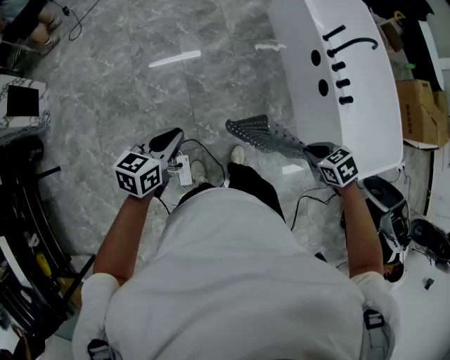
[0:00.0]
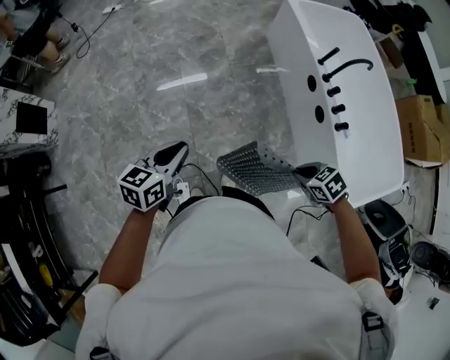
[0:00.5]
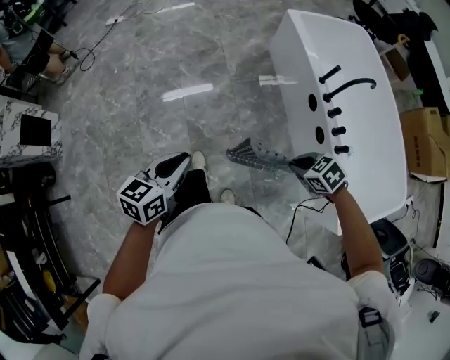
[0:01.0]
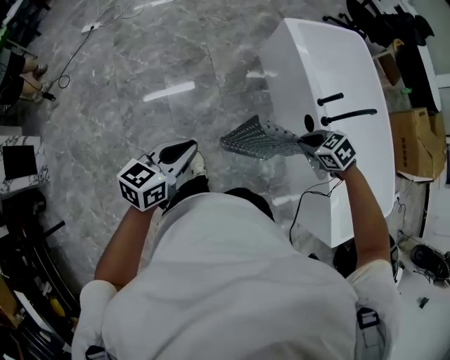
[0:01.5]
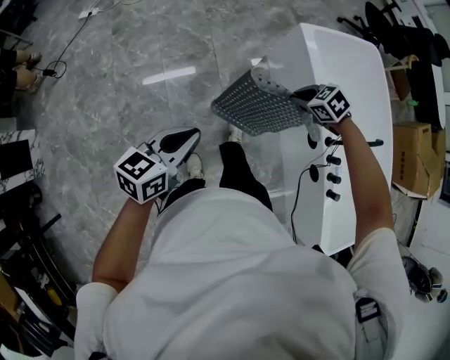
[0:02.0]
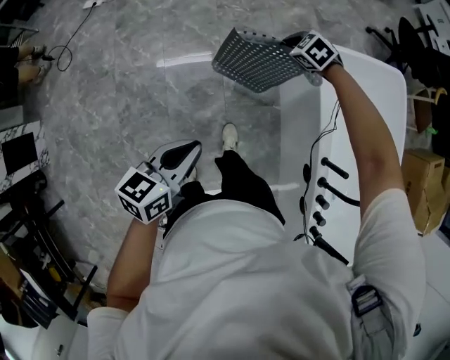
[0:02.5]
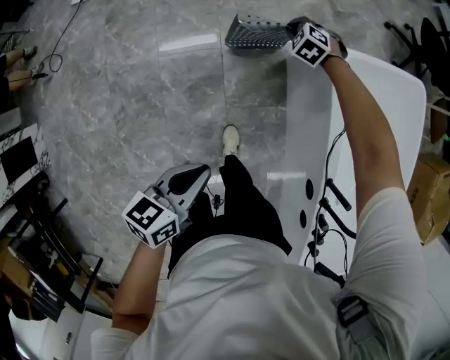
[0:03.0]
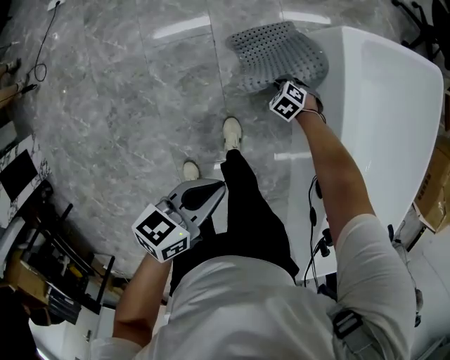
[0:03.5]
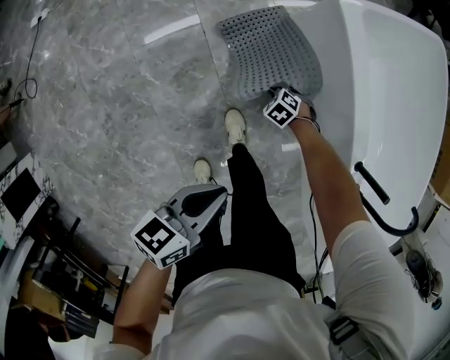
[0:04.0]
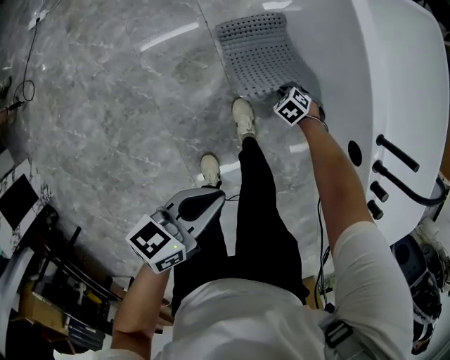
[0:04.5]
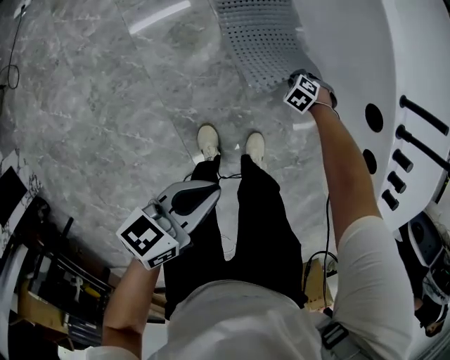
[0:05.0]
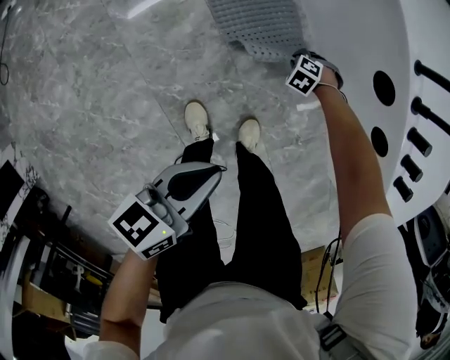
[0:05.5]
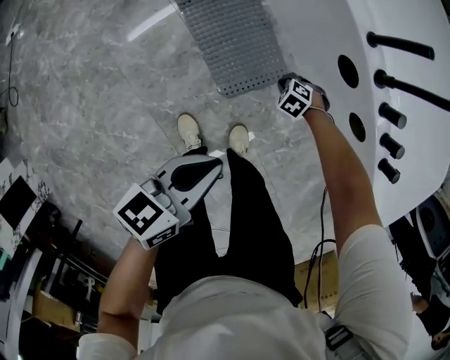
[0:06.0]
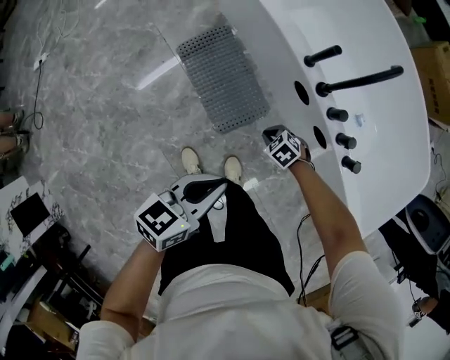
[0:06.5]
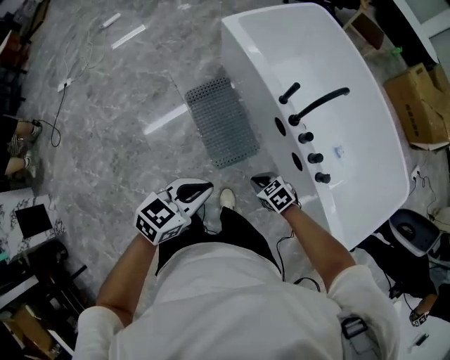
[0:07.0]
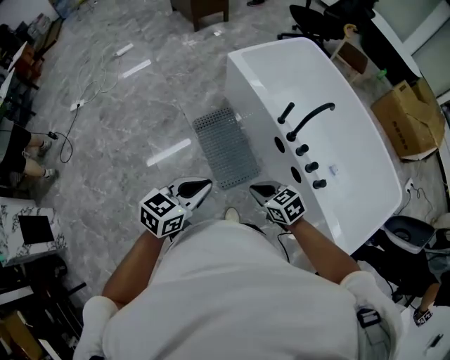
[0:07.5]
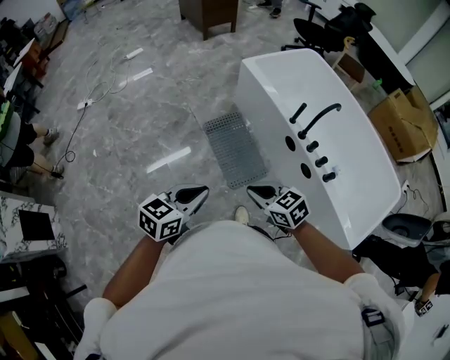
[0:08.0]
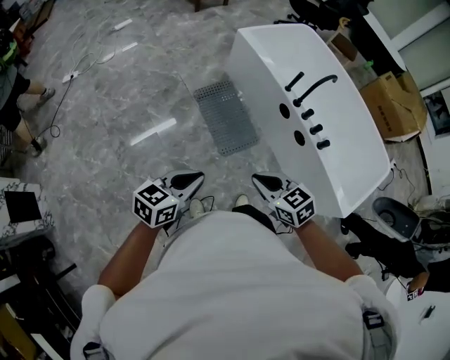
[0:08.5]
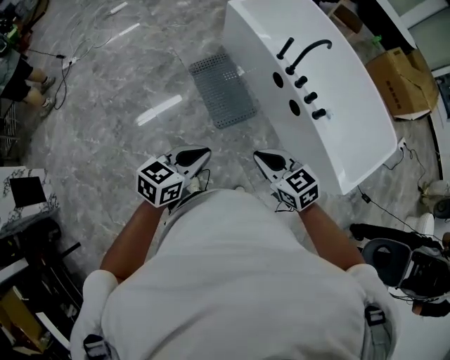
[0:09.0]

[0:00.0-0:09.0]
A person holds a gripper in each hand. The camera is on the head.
0:00.0 to 0:02.0: The two grippers travel together, forward, approximately 60 cm.
0:02.0 to 0:04.5: The left gripper is displaced downward by some 25 cm, and changes its angle by some 20 degrees, while the right gripper is displaced downward by roughly 50 cm.
0:04.5 to 0:07.0: The left gripper changes place by about 35 cm, and changes its angle by about 40 degrees. The right gripper moves roughly 60 cm, and swivels roughly 40 degrees.
0:07.0 to 0:09.0: The right gripper is displaced upward by some 25 cm, and swivels some 30 degrees, while the left gripper moves about 25 cm.

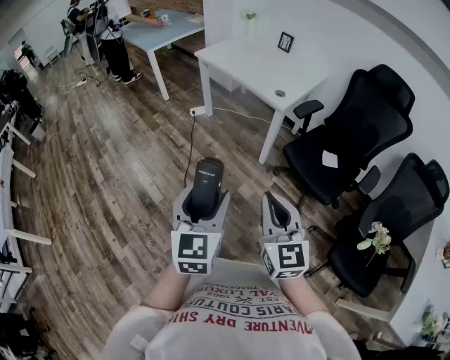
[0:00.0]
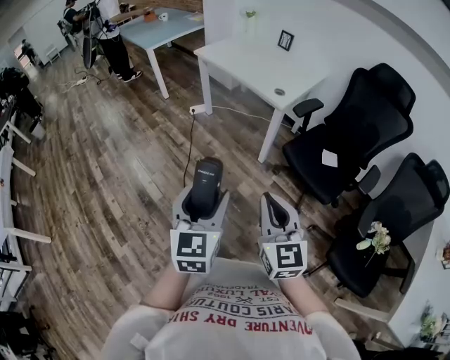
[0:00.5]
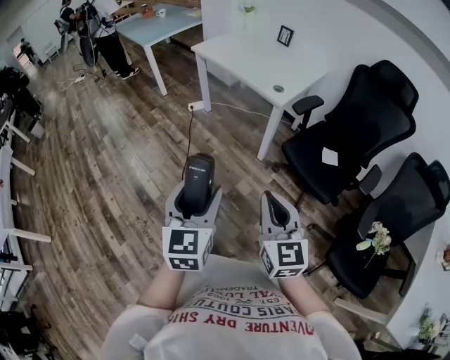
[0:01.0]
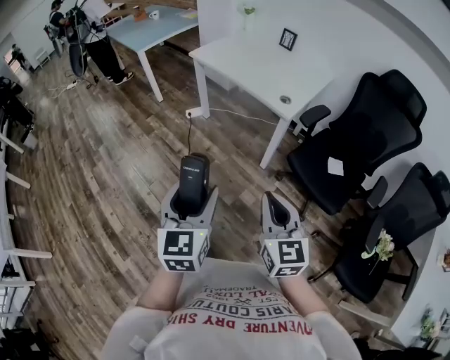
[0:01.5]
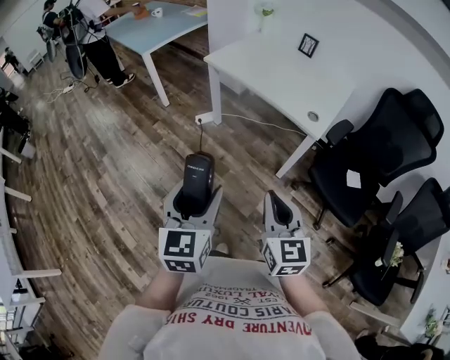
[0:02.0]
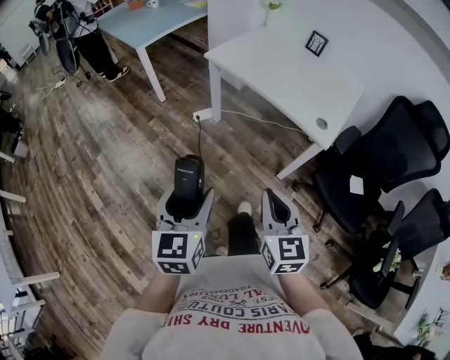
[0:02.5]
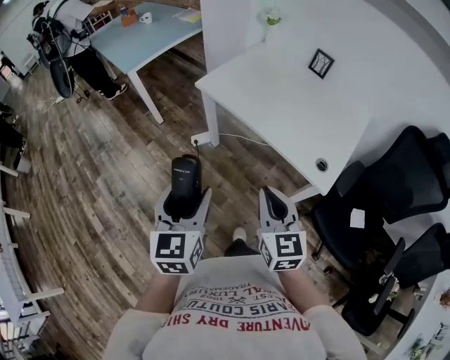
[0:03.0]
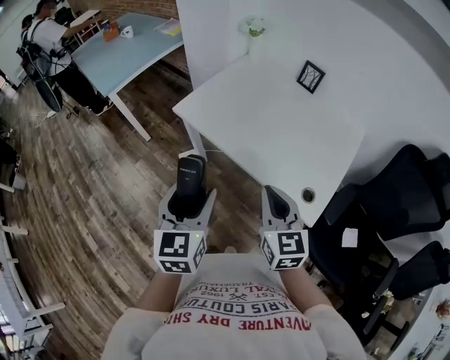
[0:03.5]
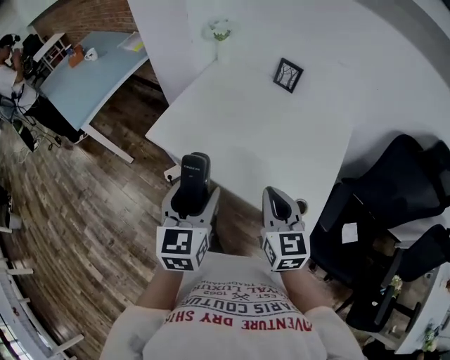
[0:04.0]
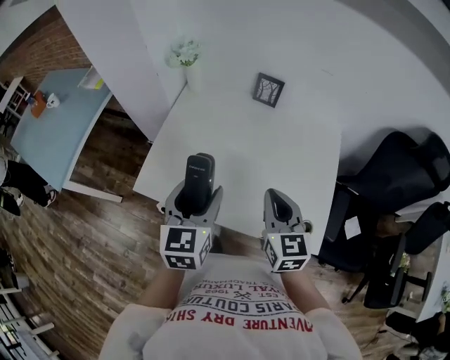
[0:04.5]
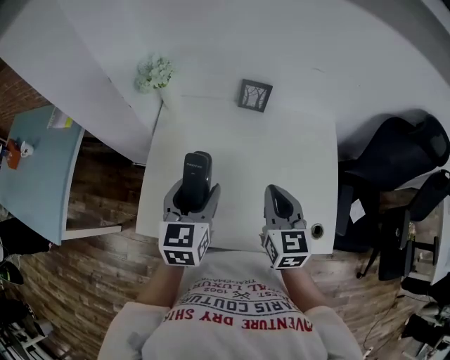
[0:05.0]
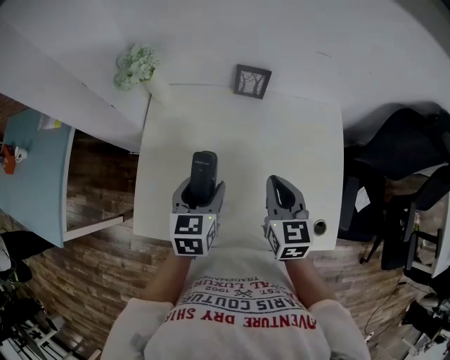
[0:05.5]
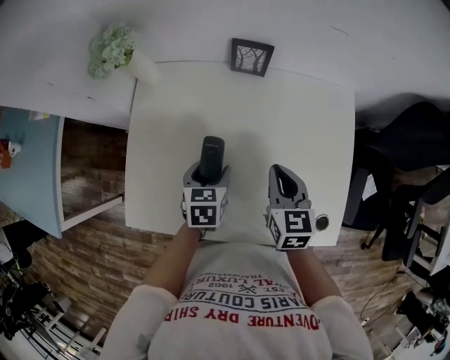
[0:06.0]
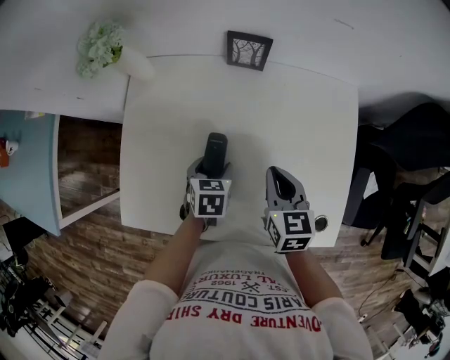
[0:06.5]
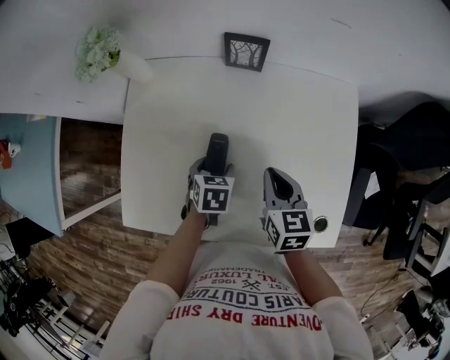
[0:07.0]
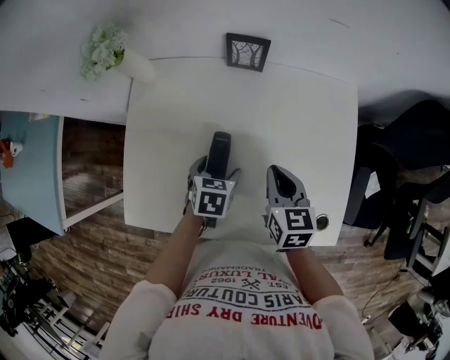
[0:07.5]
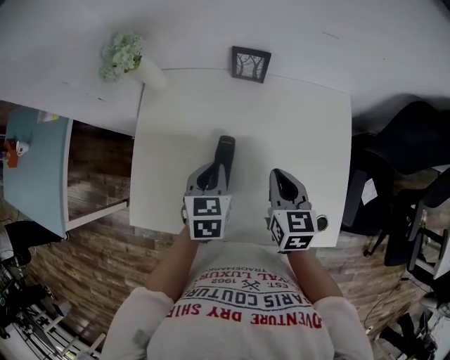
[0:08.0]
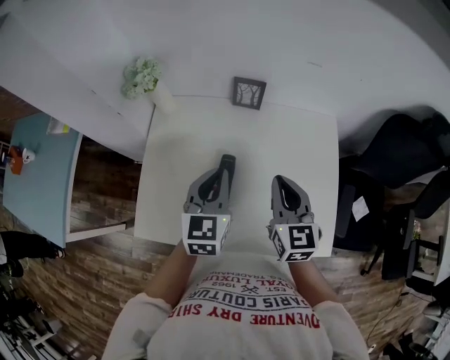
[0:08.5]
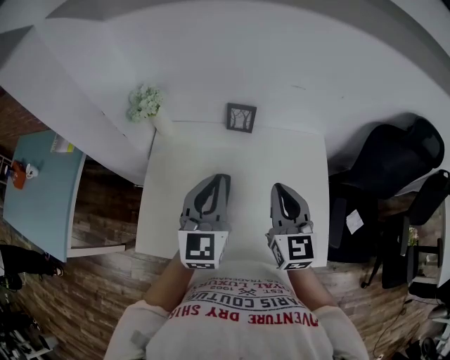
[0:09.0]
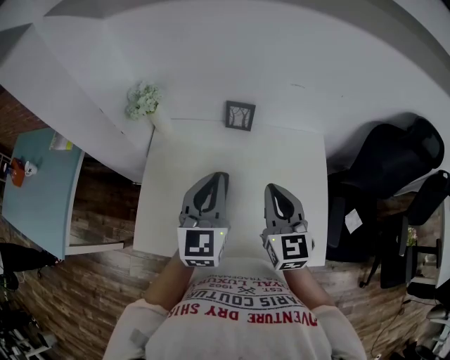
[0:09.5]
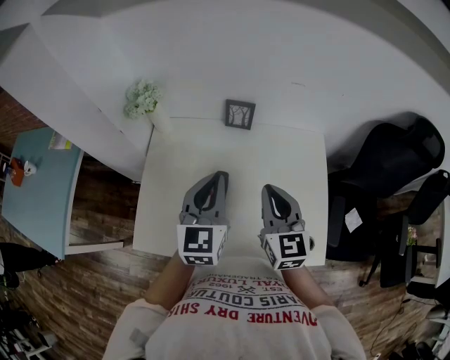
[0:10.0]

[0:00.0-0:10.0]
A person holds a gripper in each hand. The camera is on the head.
0:00.0 to 0:02.0: The grippers both shift forward and to the left by roughly 30 cm.
0:02.0 to 0:04.0: The pair of grippers is taken forward, approximately 50 cm.
0:04.0 to 0:06.0: The left gripper changes place by some 40 cm, and tips its fingers downward by roughly 30 degrees, while the right gripper shifts by about 30 cm, and swivels approximately 30 degrees.
0:06.0 to 0:08.0: The left gripper heads upward, covering roughly 10 cm, and closes up.
0:08.0 to 0:10.0: Both grippers move upward, roughly 15 cm. The right gripper rotates some 20 degrees; the left gripper tilts its fingers about 30 degrees upward.

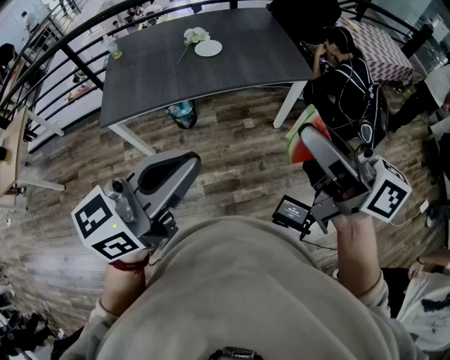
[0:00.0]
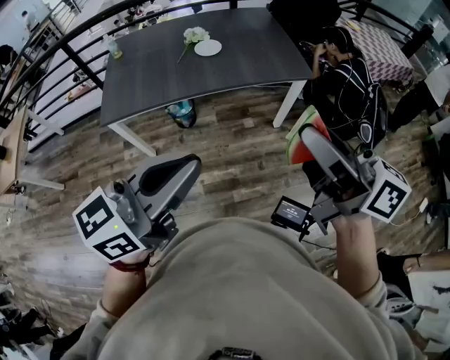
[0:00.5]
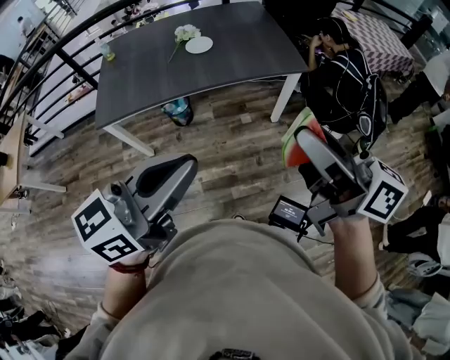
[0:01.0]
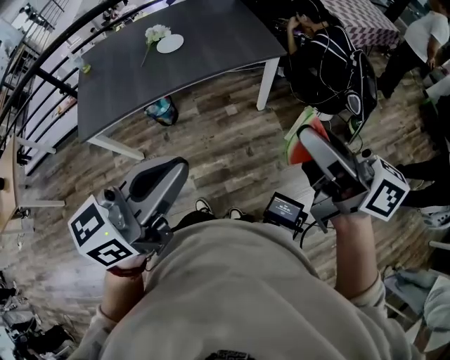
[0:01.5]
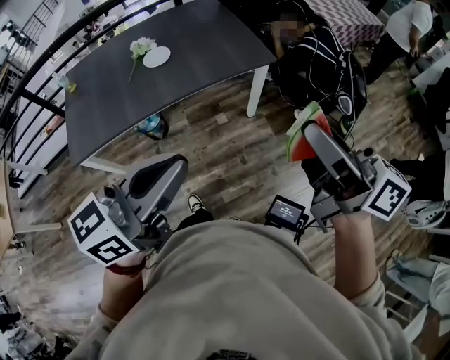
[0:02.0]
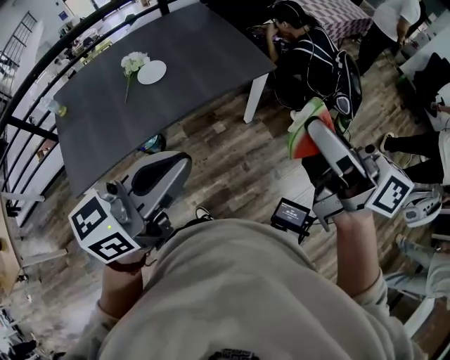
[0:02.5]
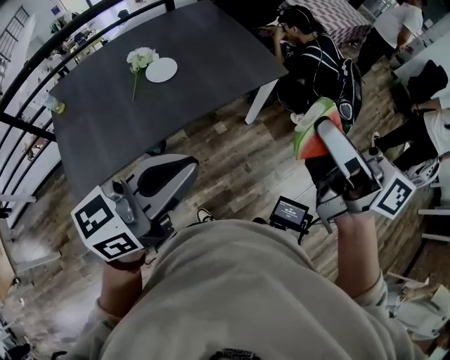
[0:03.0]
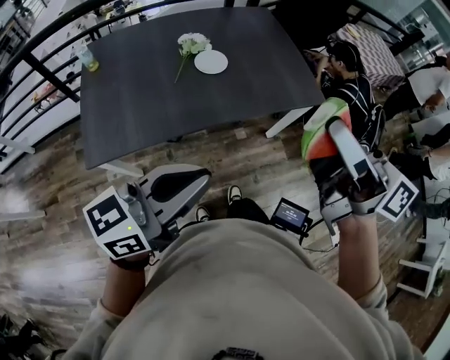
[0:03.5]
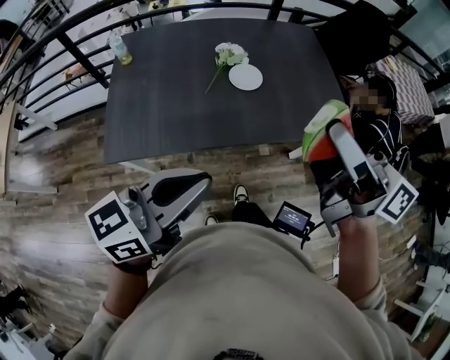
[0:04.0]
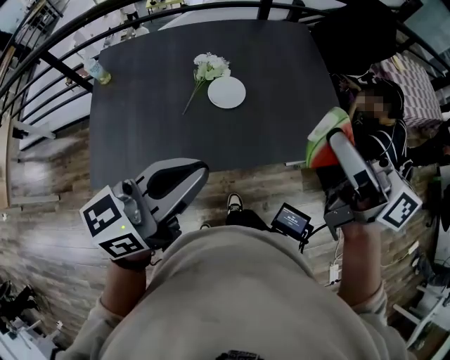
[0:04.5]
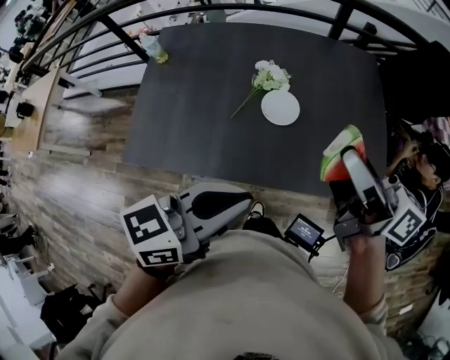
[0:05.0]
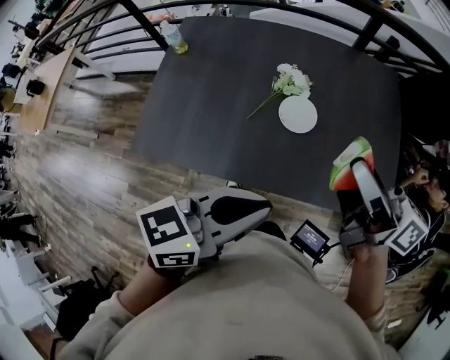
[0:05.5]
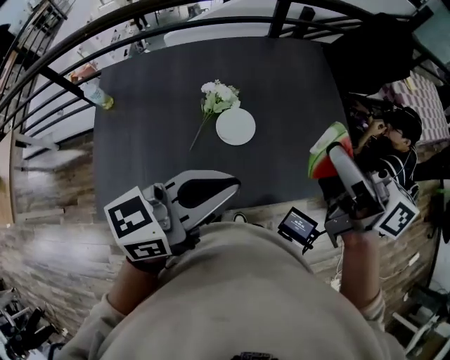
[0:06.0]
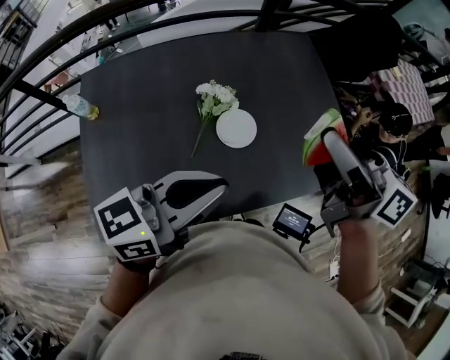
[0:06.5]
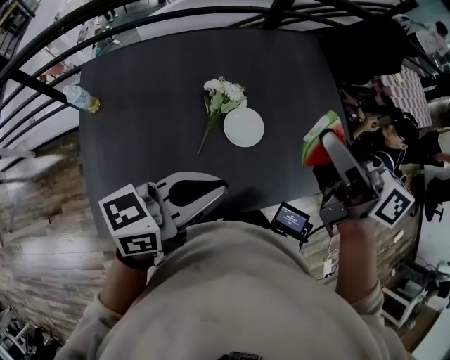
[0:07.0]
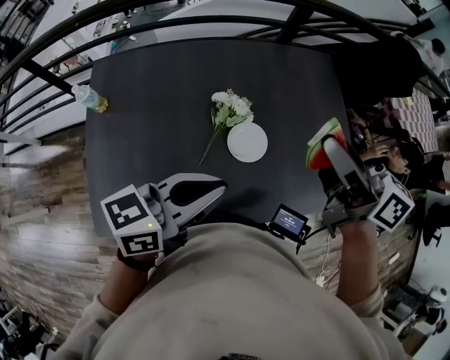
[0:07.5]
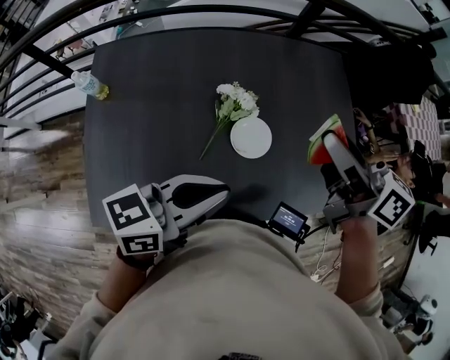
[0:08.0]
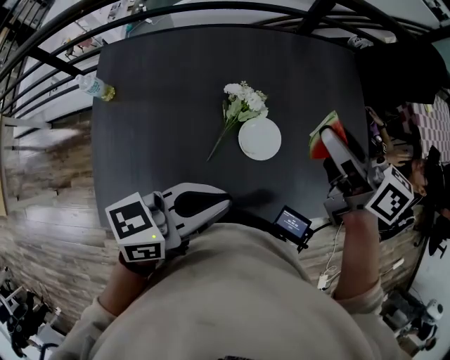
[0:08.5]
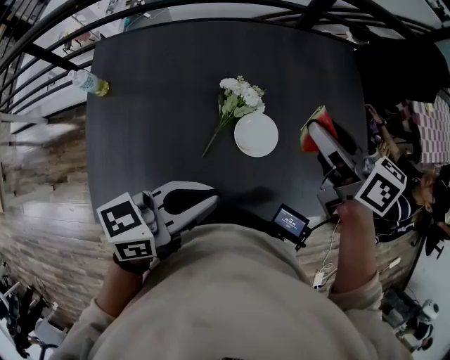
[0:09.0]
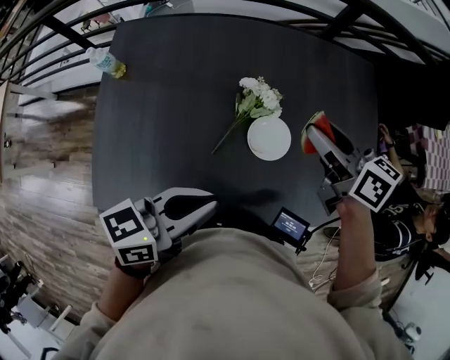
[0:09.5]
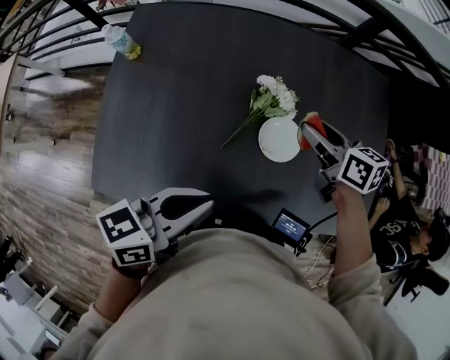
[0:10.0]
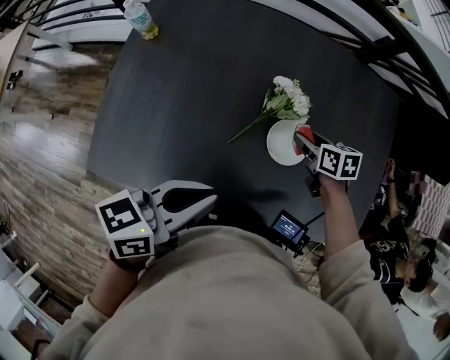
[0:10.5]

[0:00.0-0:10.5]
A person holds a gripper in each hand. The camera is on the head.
0:00.0 to 0:02.0: The left gripper travels forward and to the right by some 10 cm. The right gripper is displaced to the right and forward by approximately 10 cm.
0:02.0 to 0:04.0: The grippers both shift to the left and forward by about 35 cm.
0:04.0 to 0:06.5: Both grippers move forward, some 30 cm.
0:06.5 to 0:08.5: The right gripper shifts approximately 15 cm forward and downward; the left gripper shifts roughly 5 cm downward.
0:08.5 to 0:10.5: The right gripper moves downward, about 30 cm, and angles its fingers downward, by some 40 degrees. The left gripper shifts some 10 cm to the left and downward, and changes its angle by approximately 20 degrees.
